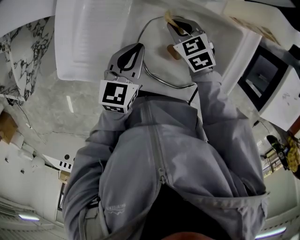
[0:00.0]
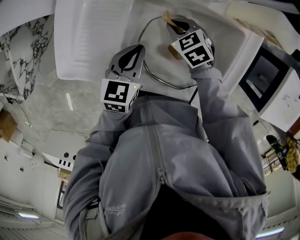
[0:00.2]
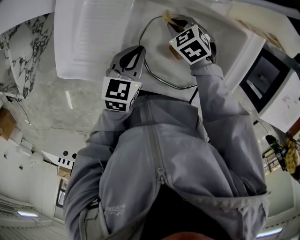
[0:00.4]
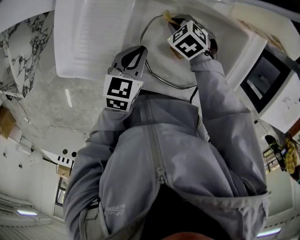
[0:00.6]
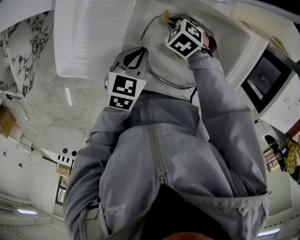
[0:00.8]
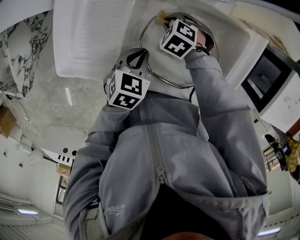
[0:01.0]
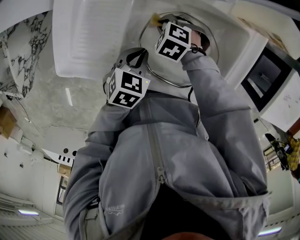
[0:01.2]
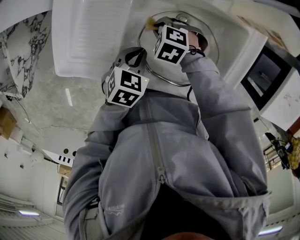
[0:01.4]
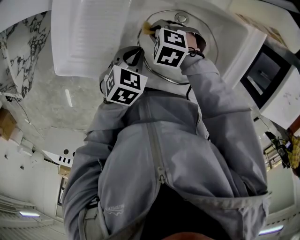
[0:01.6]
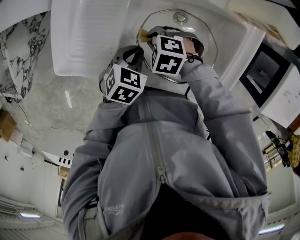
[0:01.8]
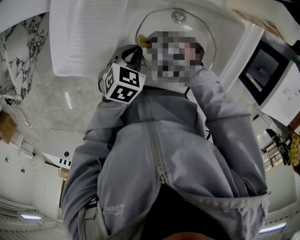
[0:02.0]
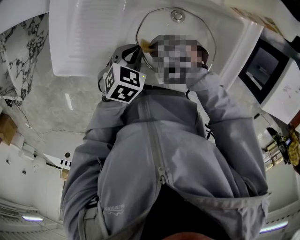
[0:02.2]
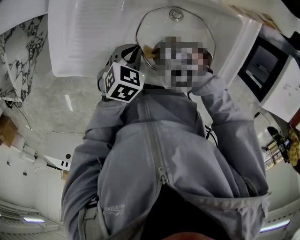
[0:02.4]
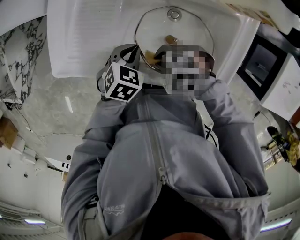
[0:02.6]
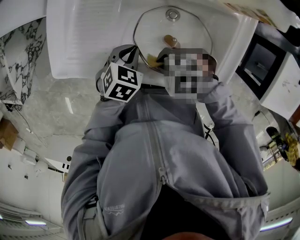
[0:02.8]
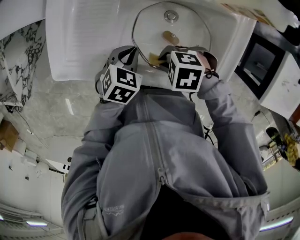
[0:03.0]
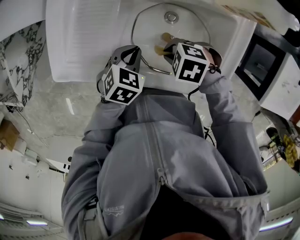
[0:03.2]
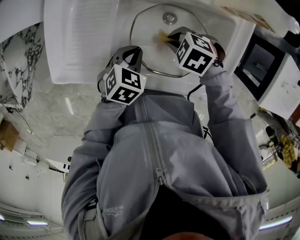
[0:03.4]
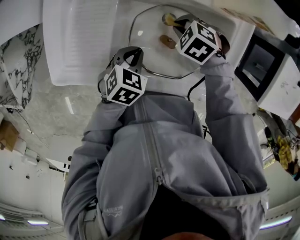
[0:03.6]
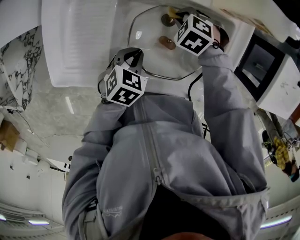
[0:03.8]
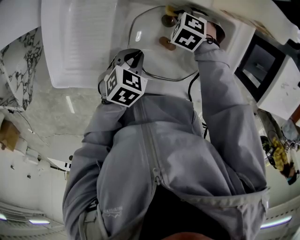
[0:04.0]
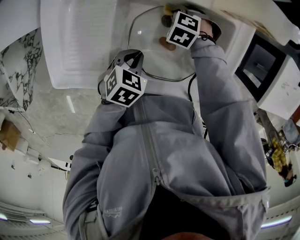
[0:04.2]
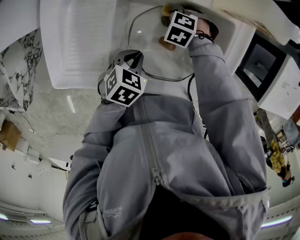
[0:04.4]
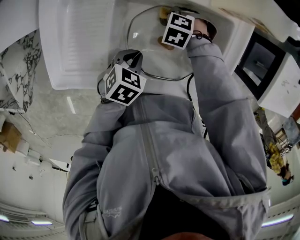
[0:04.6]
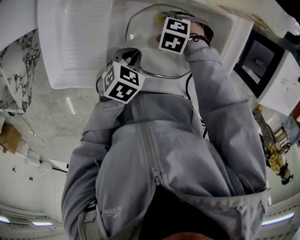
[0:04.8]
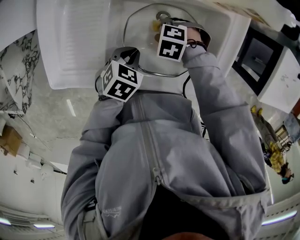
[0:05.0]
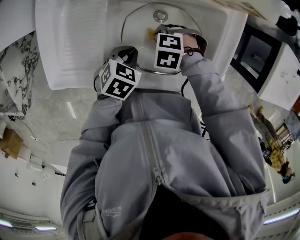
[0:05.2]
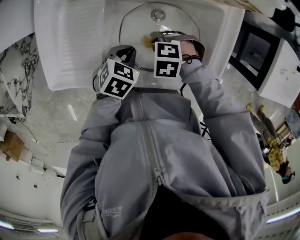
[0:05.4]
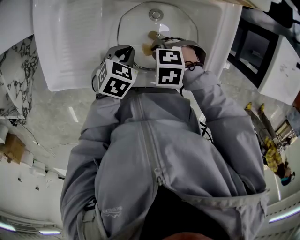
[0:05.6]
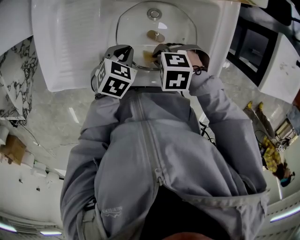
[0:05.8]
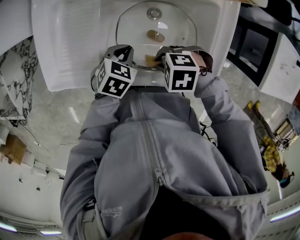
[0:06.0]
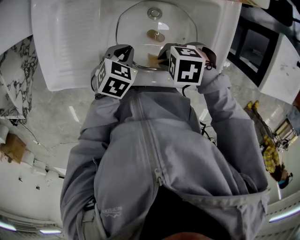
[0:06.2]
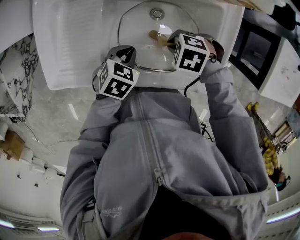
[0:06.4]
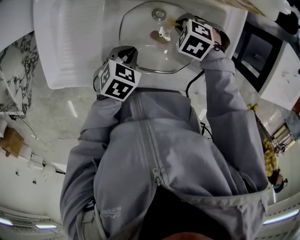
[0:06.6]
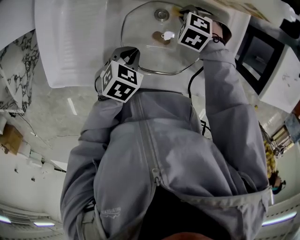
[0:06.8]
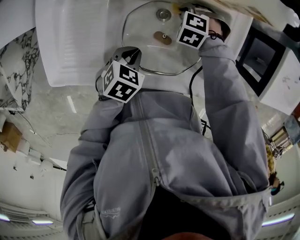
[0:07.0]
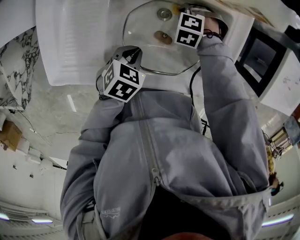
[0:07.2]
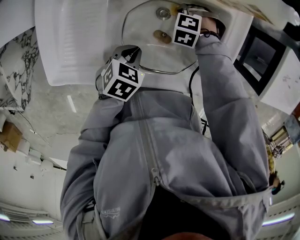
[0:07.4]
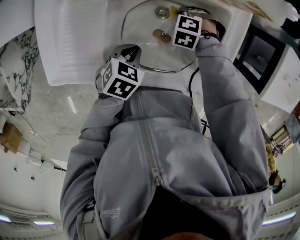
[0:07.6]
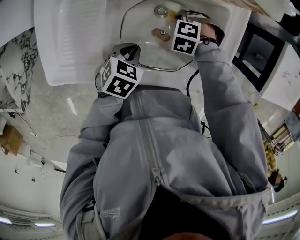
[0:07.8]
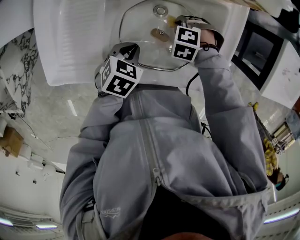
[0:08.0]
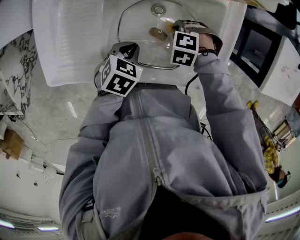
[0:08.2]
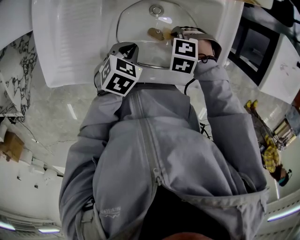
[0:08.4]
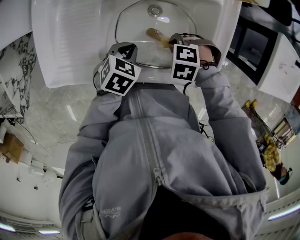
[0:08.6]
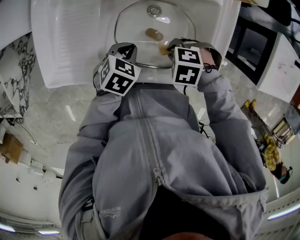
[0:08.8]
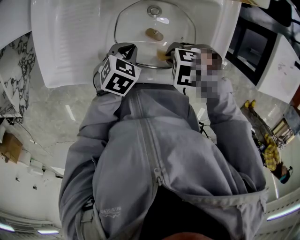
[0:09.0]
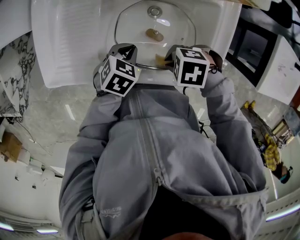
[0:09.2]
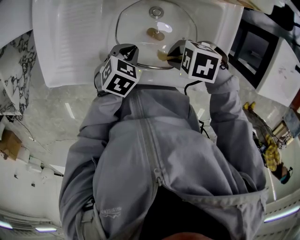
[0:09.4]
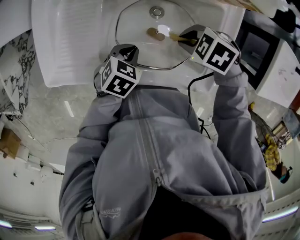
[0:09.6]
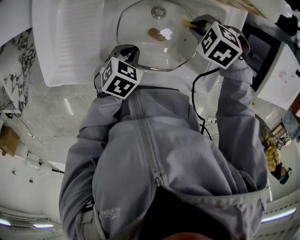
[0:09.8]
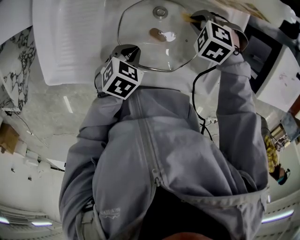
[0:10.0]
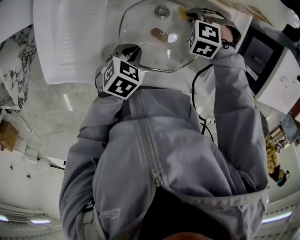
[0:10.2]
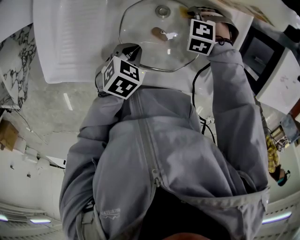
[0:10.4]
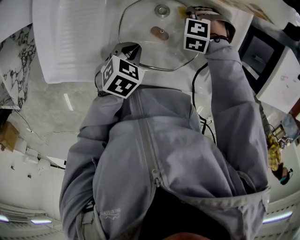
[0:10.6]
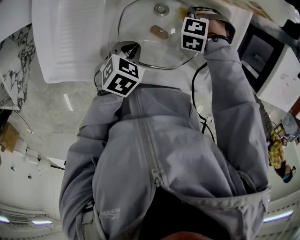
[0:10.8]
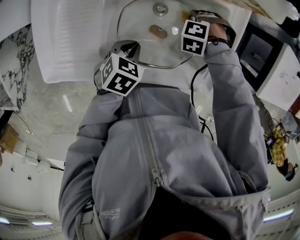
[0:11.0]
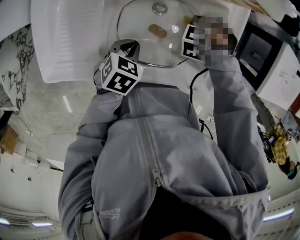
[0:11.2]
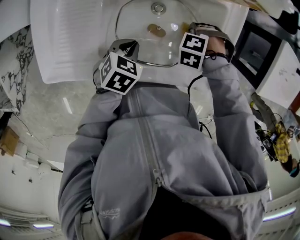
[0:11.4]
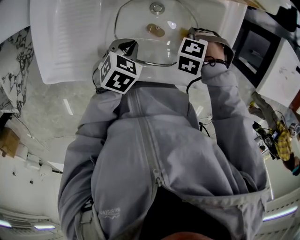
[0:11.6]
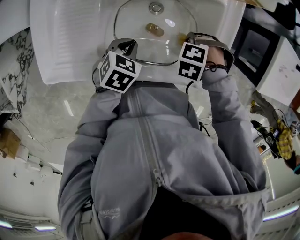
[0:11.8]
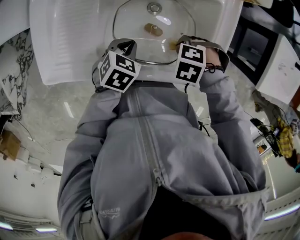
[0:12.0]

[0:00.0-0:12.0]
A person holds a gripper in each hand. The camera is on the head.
0:00.0 to 0:01.6: The left gripper heads downward, covering approximately 5 cm, and rotates about 30 degrees. The right gripper changes place by roughly 10 cm, and swivels about 40 degrees.
0:01.6 to 0:03.0: The right gripper moves approximately 15 cm.
0:03.0 to 0:04.4: The right gripper ends up some 25 cm from where it was, and swivels some 30 degrees.
0:04.4 to 0:06.0: The right gripper changes place by about 25 cm, and swivels some 30 degrees.
0:06.0 to 0:07.6: The right gripper moves roughly 20 cm, and swivels some 30 degrees.
0:07.6 to 0:09.0: The right gripper moves some 20 cm, and changes its angle by roughly 30 degrees.
0:09.0 to 0:10.4: The right gripper ends up roughly 20 cm from where it was, and rotates approximately 40 degrees.
0:10.4 to 0:12.0: The right gripper ends up about 15 cm from where it was, and changes its angle by about 30 degrees.

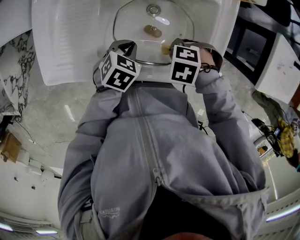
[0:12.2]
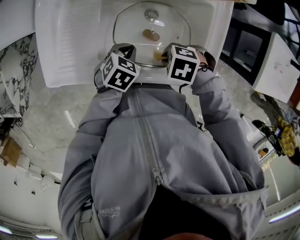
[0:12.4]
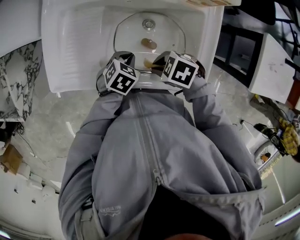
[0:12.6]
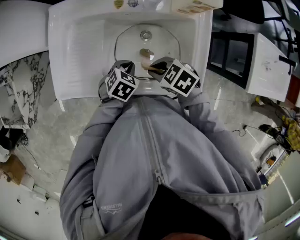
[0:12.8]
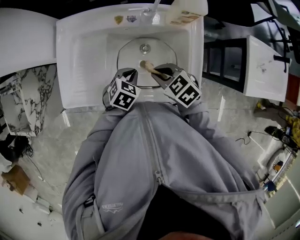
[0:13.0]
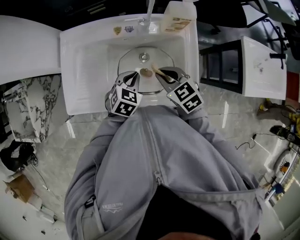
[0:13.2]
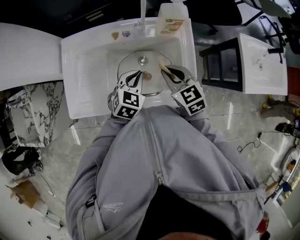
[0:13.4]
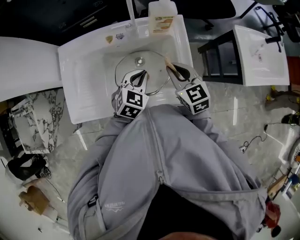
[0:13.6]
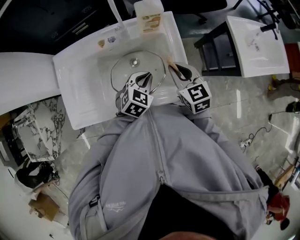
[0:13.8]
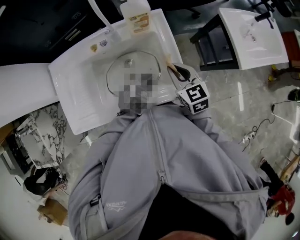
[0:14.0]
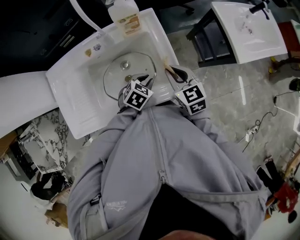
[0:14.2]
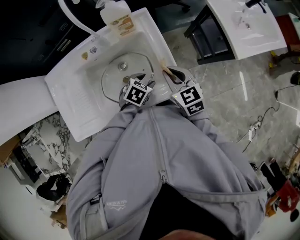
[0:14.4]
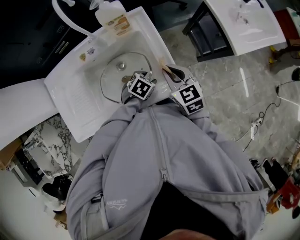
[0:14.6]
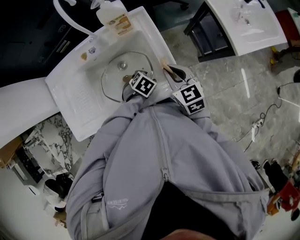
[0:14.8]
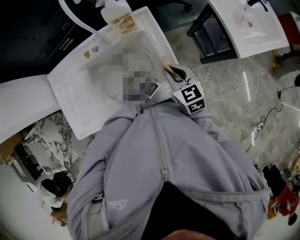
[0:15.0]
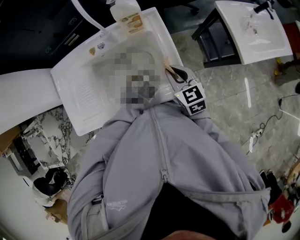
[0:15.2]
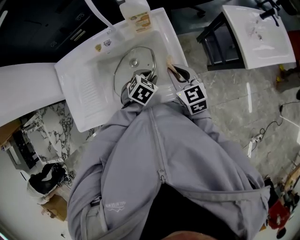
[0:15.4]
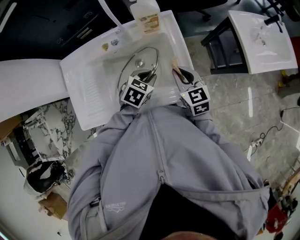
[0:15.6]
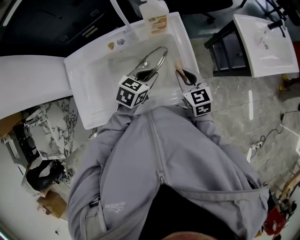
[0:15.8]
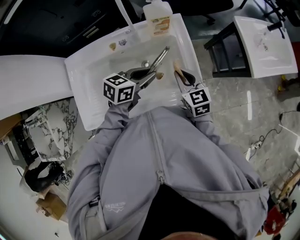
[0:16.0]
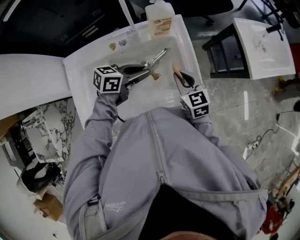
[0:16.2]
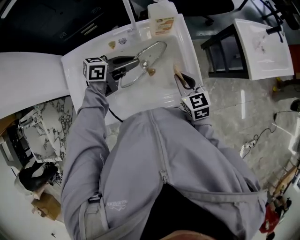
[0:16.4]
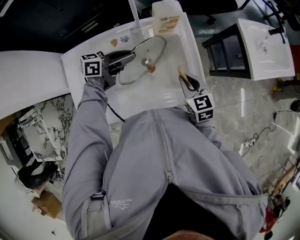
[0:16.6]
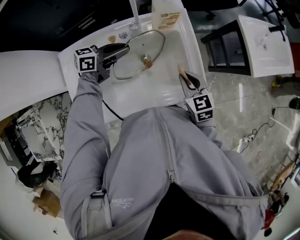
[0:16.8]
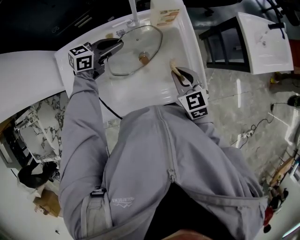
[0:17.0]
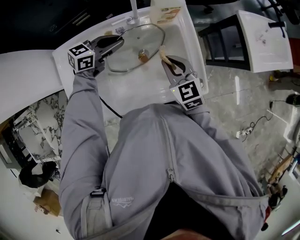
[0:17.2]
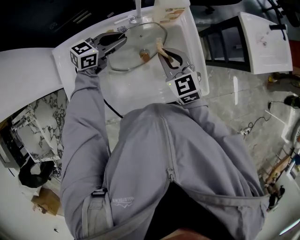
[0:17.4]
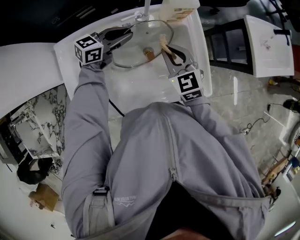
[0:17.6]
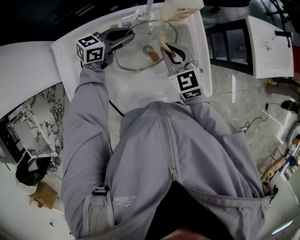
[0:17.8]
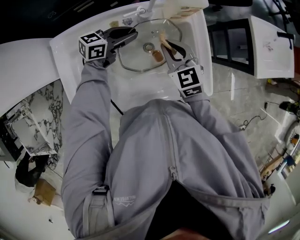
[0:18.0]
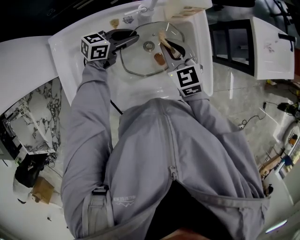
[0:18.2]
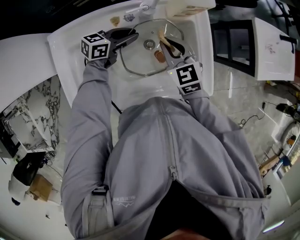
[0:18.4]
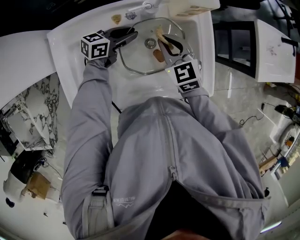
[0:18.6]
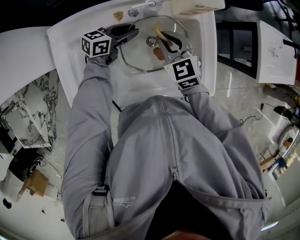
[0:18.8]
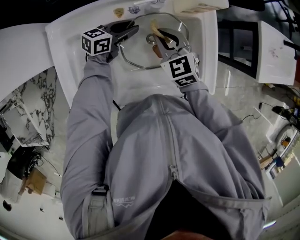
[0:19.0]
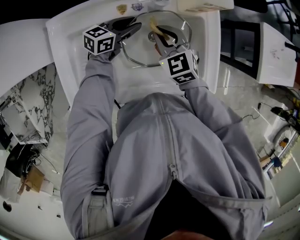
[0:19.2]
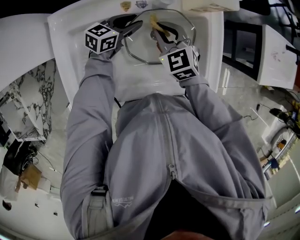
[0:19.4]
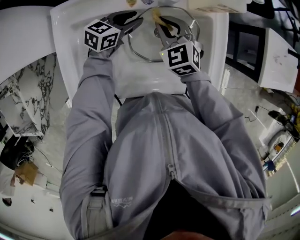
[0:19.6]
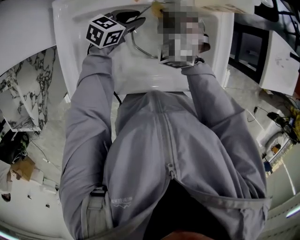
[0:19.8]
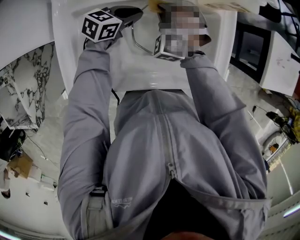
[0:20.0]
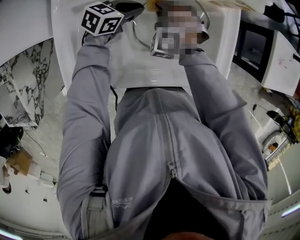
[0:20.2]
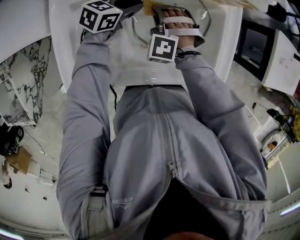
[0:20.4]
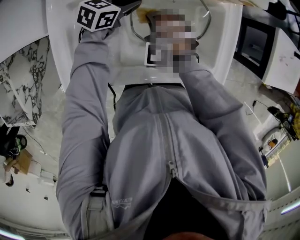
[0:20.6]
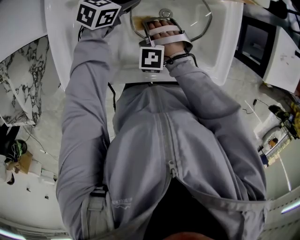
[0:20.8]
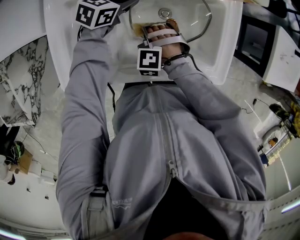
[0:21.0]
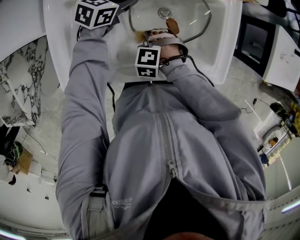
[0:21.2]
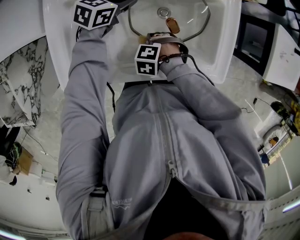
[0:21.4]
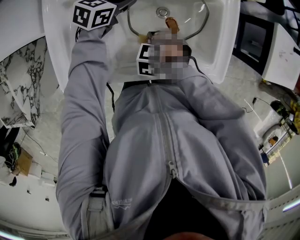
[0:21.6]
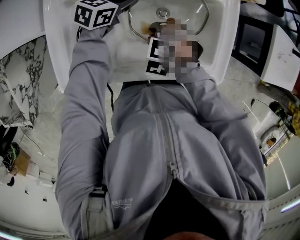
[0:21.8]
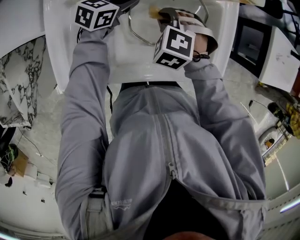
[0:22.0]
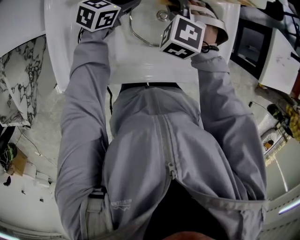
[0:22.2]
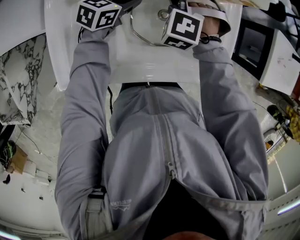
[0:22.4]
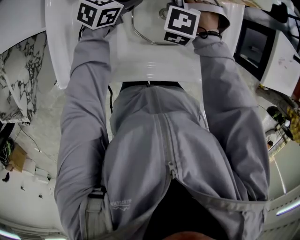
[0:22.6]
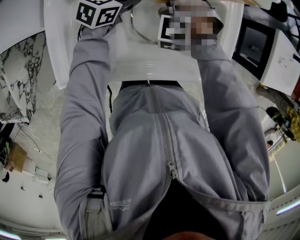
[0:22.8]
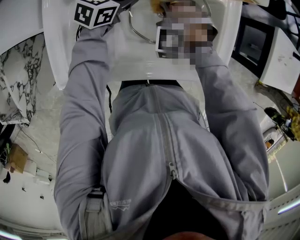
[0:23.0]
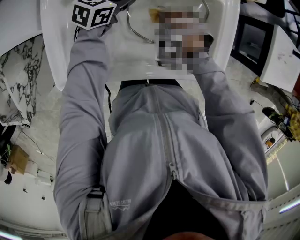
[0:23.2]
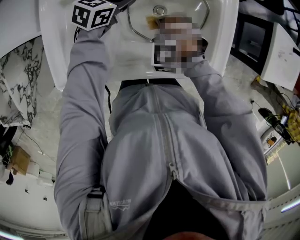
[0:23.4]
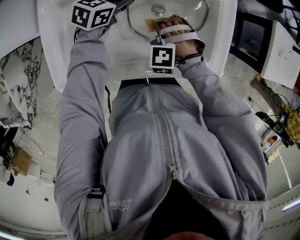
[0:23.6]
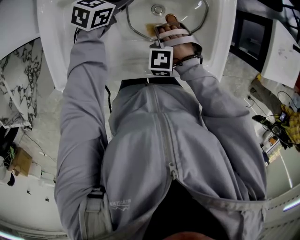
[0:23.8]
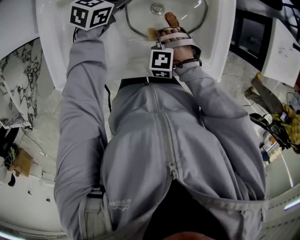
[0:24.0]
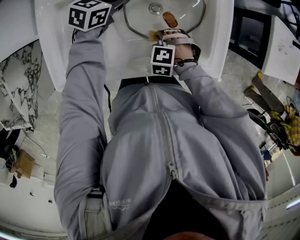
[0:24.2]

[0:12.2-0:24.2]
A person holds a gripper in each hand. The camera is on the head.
0:12.2 to 0:13.8: The left gripper changes place by approximately 20 cm, and changes its angle by approximately 30 degrees. Meanwhile the right gripper moves upward, about 20 cm, and tilts its fingers some 40 degrees upward.
0:13.8 to 0:15.2: The left gripper goes some 10 cm downward and to the right, rotates approximately 30 degrees, and opens.
0:15.2 to 0:16.6: The left gripper is displaced to the left and upward by approximately 25 cm, and tilts its fingers about 60 degrees upward; the right gripper ends up some 5 cm from where it was.
0:16.6 to 0:18.2: The right gripper shifts about 15 cm to the left. Meanwhile the left gripper heads downward, covering about 10 cm.
0:18.2 to 0:19.8: The right gripper travels to the left and downward by about 10 cm, and rolls counterclockwise, seen from behind, by roughly 40 degrees; the left gripper goes approximately 5 cm to the left, and rotates roughly 20 degrees.
0:19.8 to 0:21.2: The right gripper changes place by approximately 20 cm, and points its fingers some 40 degrees further downward, while the left gripper closes its fingers.
0:21.2 to 0:22.6: The right gripper shifts by roughly 20 cm, and changes its angle by roughly 20 degrees.
0:22.6 to 0:24.2: The right gripper moves approximately 25 cm, and swivels approximately 30 degrees.
